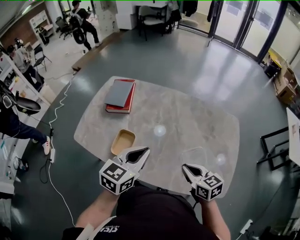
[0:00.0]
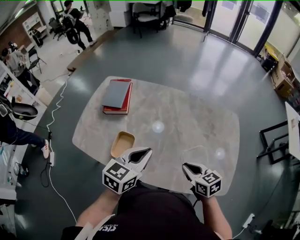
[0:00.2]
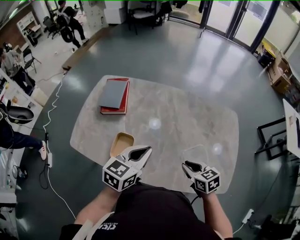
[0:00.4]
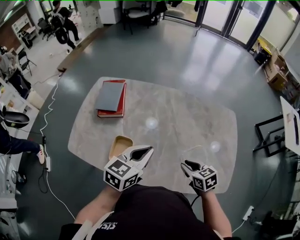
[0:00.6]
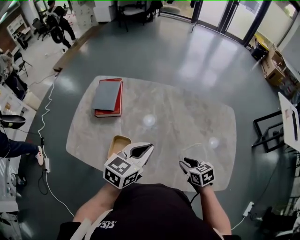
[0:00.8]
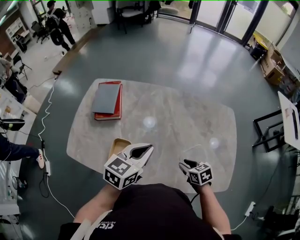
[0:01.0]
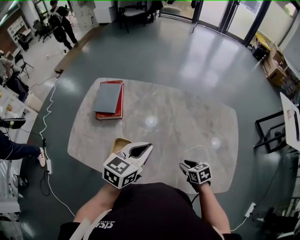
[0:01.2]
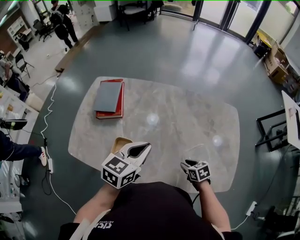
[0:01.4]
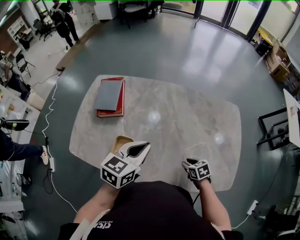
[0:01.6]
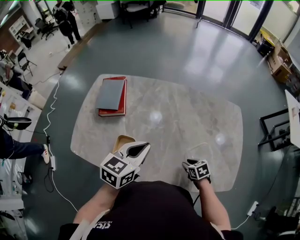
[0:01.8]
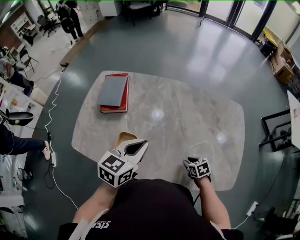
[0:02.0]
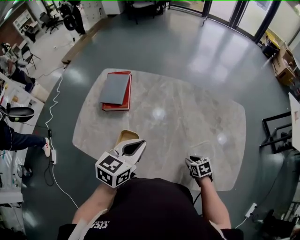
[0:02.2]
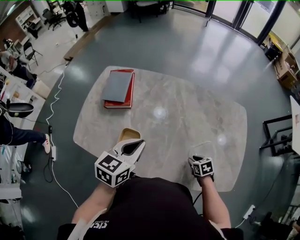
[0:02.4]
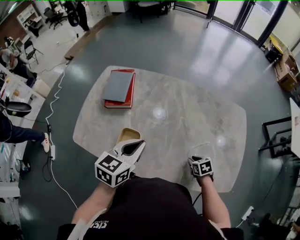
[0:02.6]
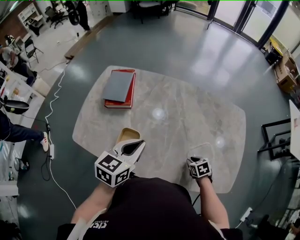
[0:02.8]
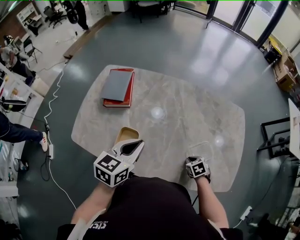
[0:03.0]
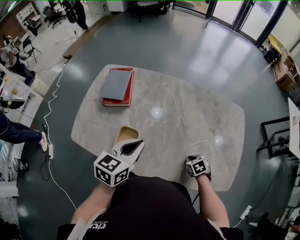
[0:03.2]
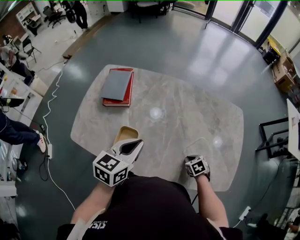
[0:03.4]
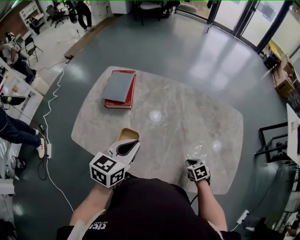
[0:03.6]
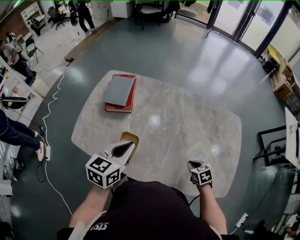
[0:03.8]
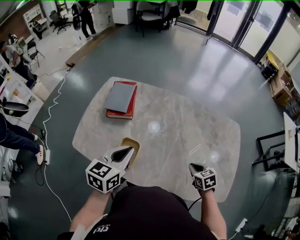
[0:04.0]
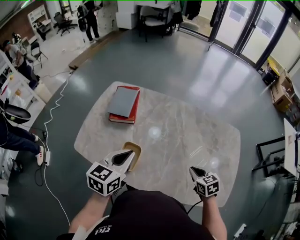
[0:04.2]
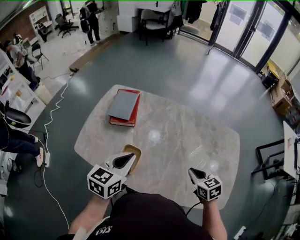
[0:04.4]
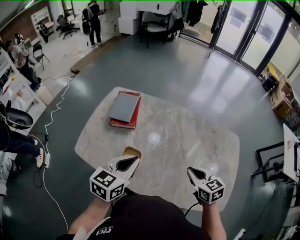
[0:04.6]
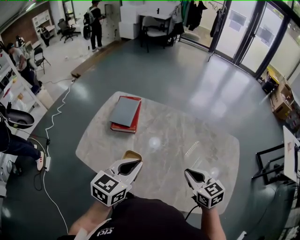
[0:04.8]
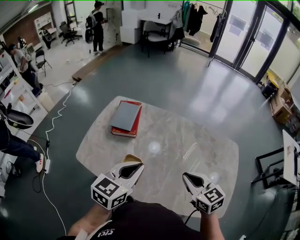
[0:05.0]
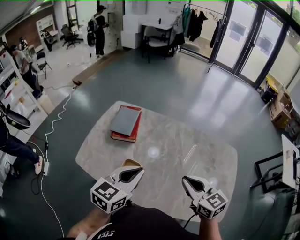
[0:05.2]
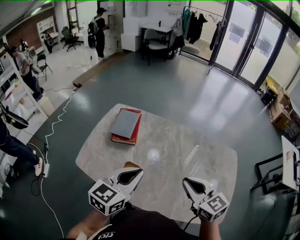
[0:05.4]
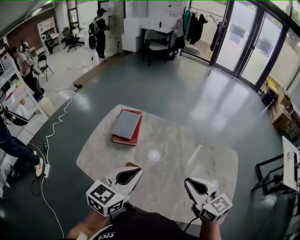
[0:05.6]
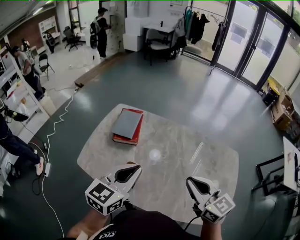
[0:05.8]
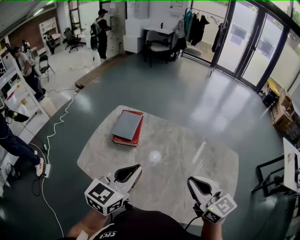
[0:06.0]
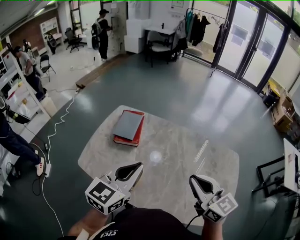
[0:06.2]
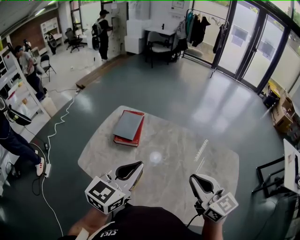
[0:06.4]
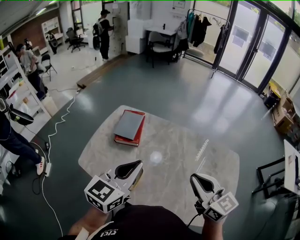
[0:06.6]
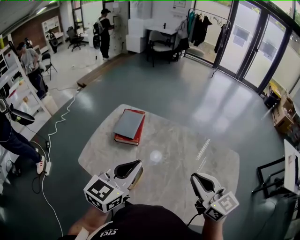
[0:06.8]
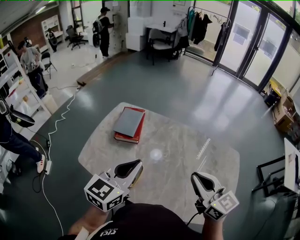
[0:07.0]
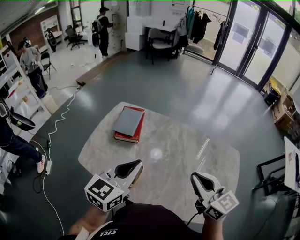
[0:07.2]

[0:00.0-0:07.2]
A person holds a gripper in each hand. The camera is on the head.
0:00.0 to 0:01.4: The left gripper heads forward, covering approximately 10 cm, while the right gripper moves downward, some 20 cm, turns by some 30 degrees, and opens its fingers.
0:01.4 to 0:02.8: The left gripper heads to the left, covering roughly 5 cm.
0:02.8 to 0:04.4: The right gripper goes approximately 20 cm upward, and swivels approximately 20 degrees. The left gripper moves to the left, about 5 cm.
0:04.4 to 0:05.8: The right gripper goes some 20 cm upward, and tips its fingers upward by about 30 degrees. Meanwhile the left gripper shifts some 10 cm upward.
0:05.8 to 0:07.2: There are only small adjustments of the grippers.

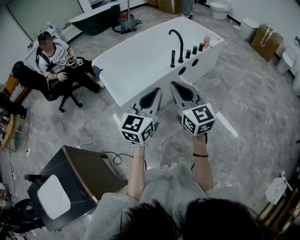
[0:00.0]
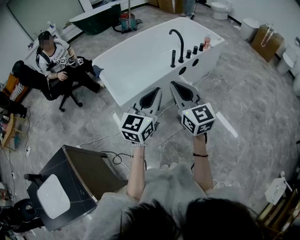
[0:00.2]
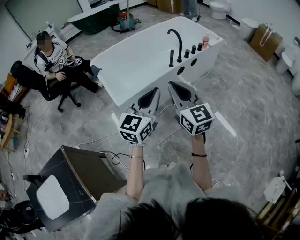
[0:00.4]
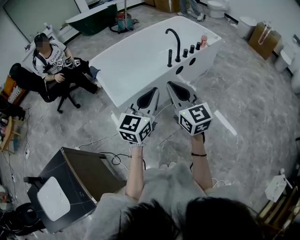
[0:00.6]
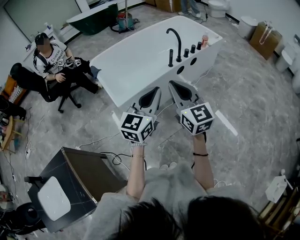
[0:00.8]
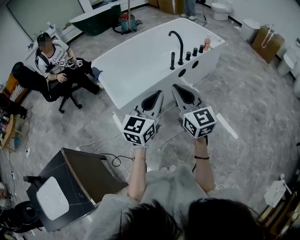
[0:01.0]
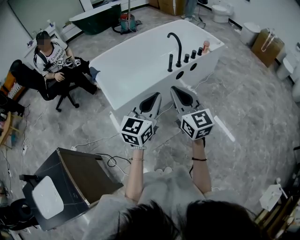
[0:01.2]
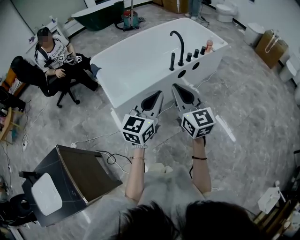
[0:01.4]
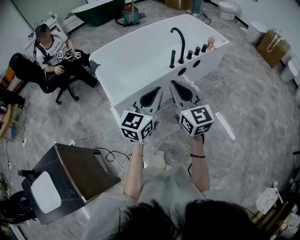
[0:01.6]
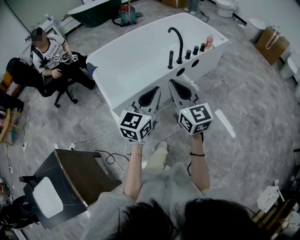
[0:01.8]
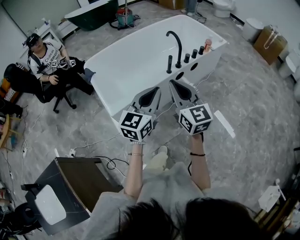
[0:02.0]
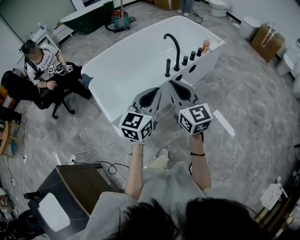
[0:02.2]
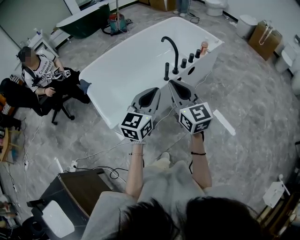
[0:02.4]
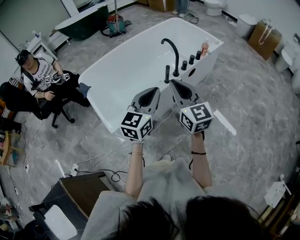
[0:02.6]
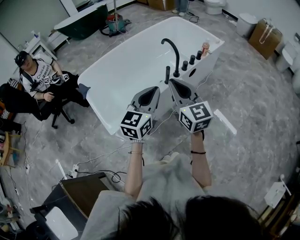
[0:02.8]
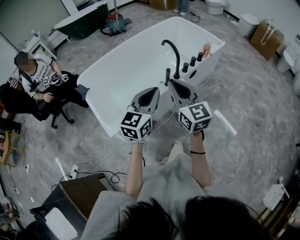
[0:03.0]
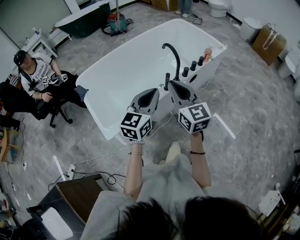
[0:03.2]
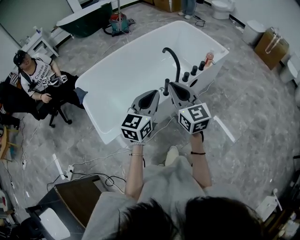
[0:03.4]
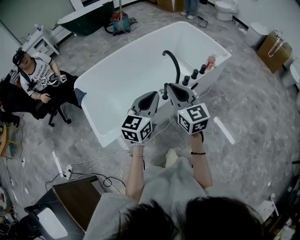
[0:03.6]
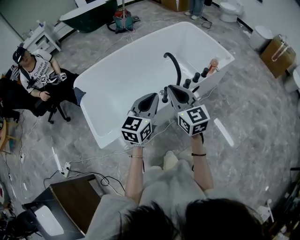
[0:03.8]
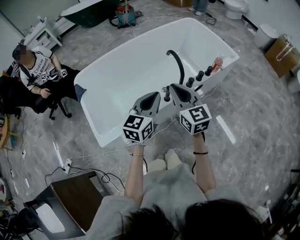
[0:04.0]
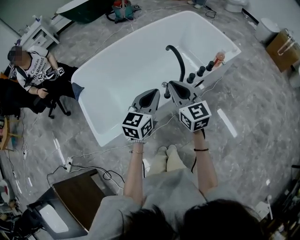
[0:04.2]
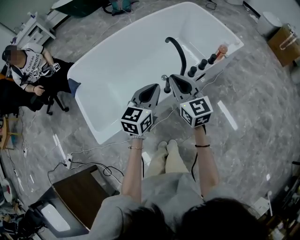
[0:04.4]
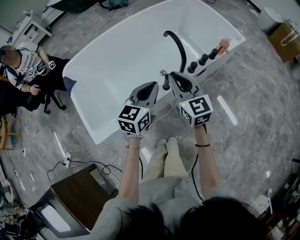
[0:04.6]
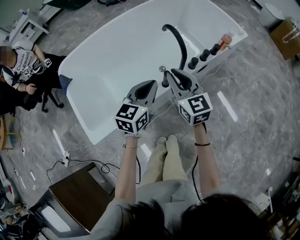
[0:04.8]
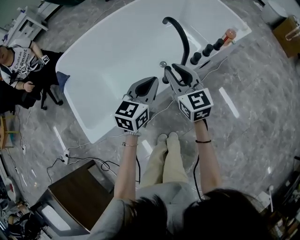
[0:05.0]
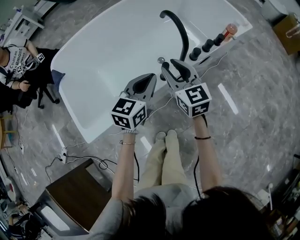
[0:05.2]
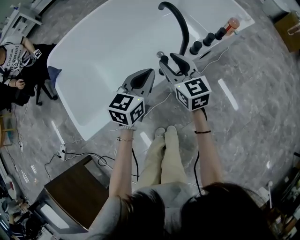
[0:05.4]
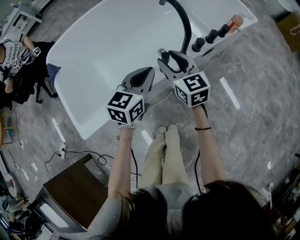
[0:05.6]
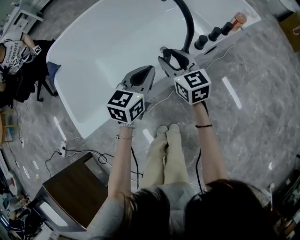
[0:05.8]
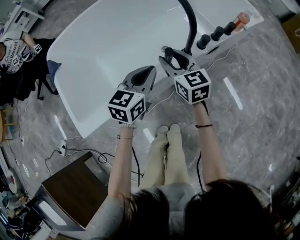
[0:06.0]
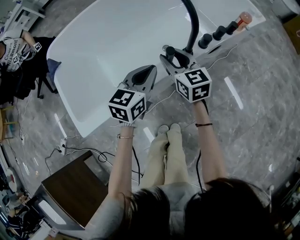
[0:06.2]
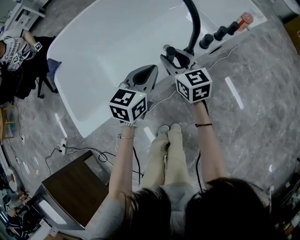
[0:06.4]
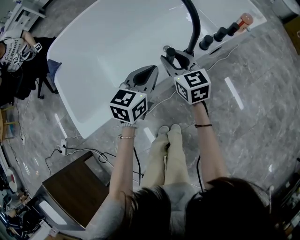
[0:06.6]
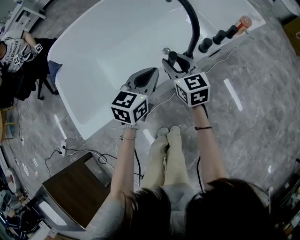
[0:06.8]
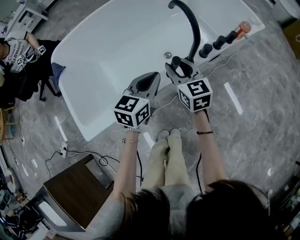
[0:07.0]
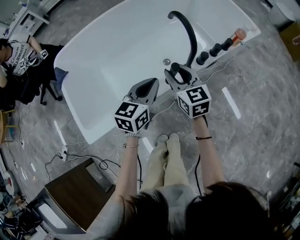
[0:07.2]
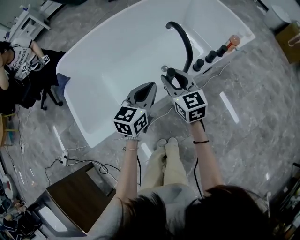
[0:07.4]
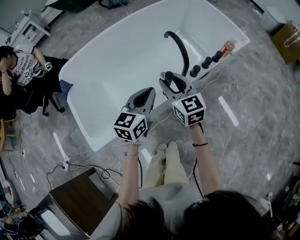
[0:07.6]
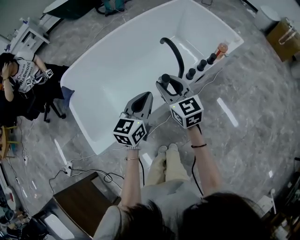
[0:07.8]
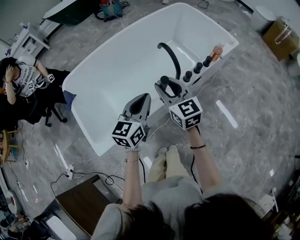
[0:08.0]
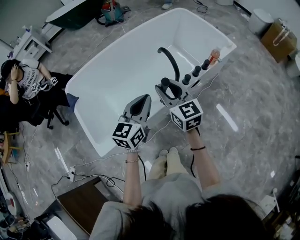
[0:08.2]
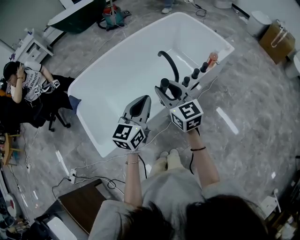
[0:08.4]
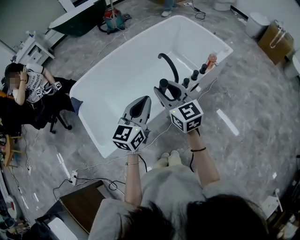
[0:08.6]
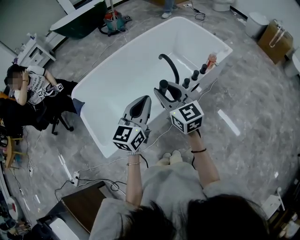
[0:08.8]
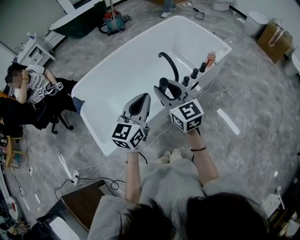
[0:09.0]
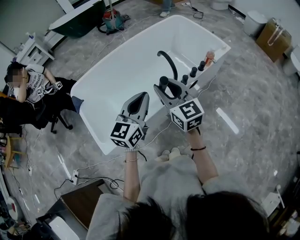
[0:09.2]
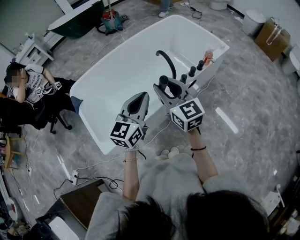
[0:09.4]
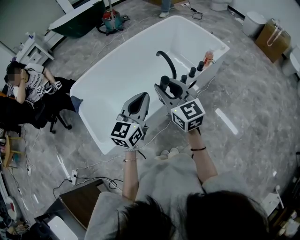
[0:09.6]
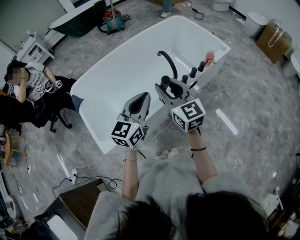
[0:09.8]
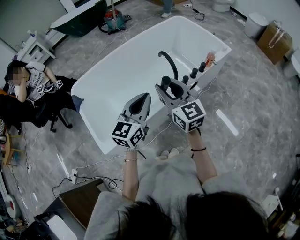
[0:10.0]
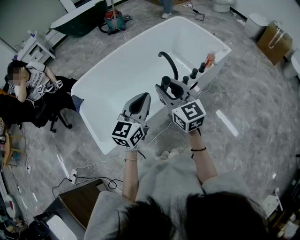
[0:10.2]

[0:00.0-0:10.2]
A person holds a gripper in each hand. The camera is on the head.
0:00.0 to 0:01.4: The right gripper moves approximately 5 cm; the left gripper shifts by some 5 cm.
0:01.4 to 0:03.0: The grippers both shift forward by roughly 25 cm.
0:03.0 to 0:04.4: Both grippers travel together forward and downward, approximately 25 cm.
0:04.4 to 0:05.8: Both grippers travel together downward, about 20 cm. The right gripper opens up.
0:05.8 to 0:07.2: The grippers stay close to where they were, moving slightly.
0:07.2 to 0:08.8: The grippers both shift upward by roughly 25 cm.
0:08.8 to 0:10.2: The grippers move only a little.

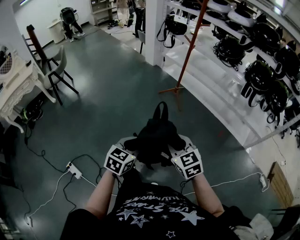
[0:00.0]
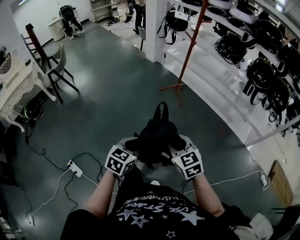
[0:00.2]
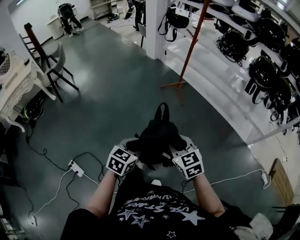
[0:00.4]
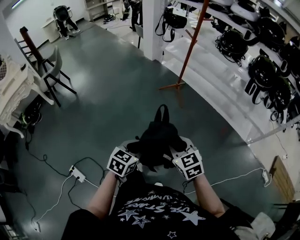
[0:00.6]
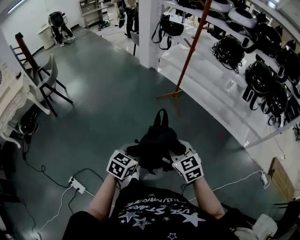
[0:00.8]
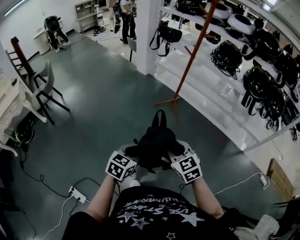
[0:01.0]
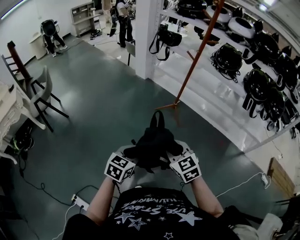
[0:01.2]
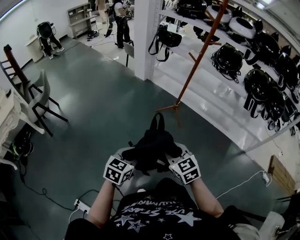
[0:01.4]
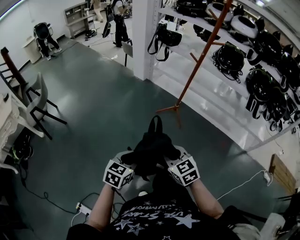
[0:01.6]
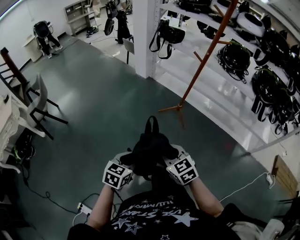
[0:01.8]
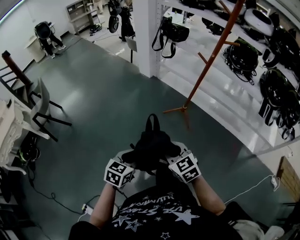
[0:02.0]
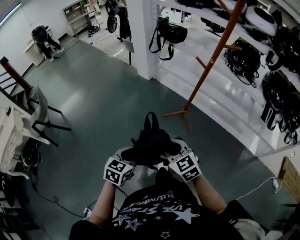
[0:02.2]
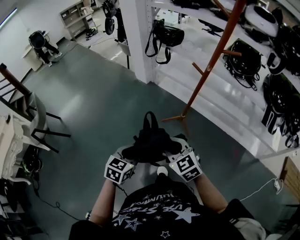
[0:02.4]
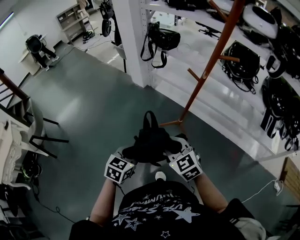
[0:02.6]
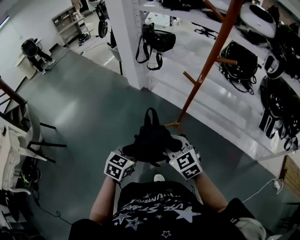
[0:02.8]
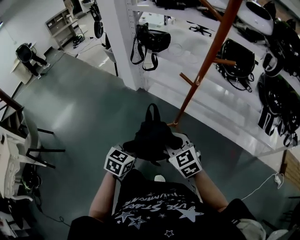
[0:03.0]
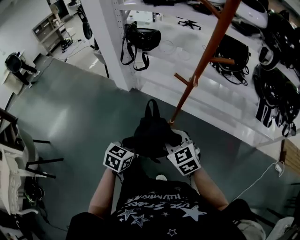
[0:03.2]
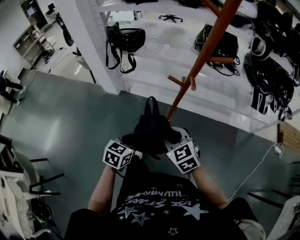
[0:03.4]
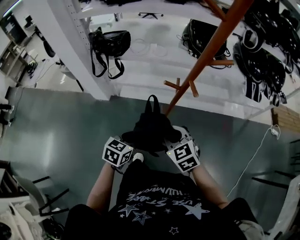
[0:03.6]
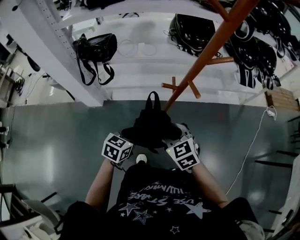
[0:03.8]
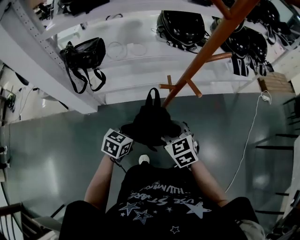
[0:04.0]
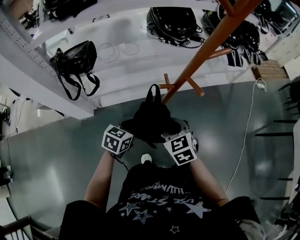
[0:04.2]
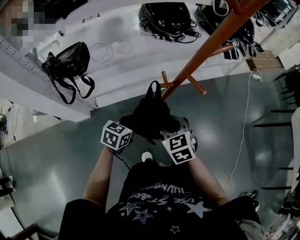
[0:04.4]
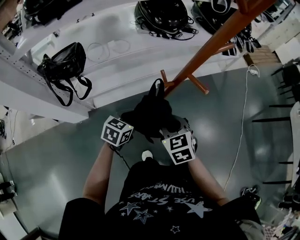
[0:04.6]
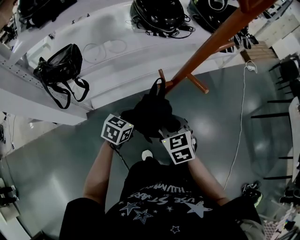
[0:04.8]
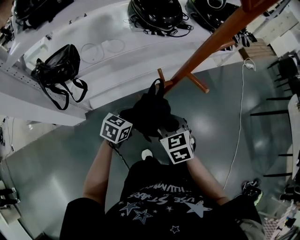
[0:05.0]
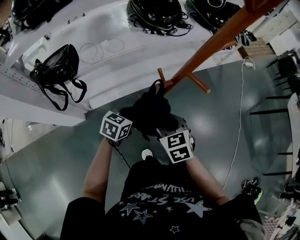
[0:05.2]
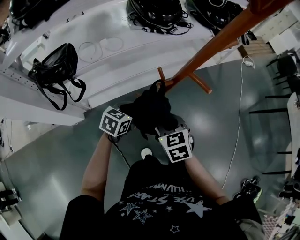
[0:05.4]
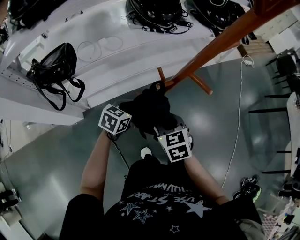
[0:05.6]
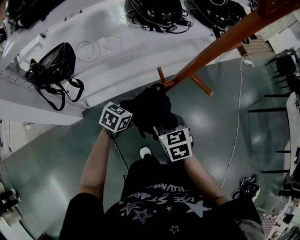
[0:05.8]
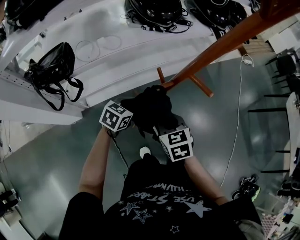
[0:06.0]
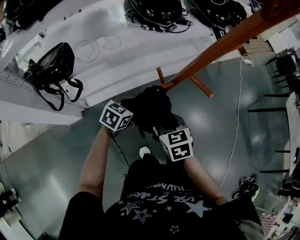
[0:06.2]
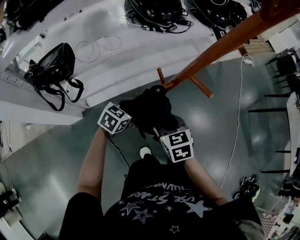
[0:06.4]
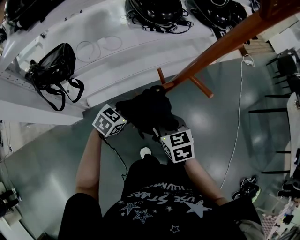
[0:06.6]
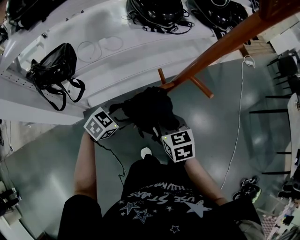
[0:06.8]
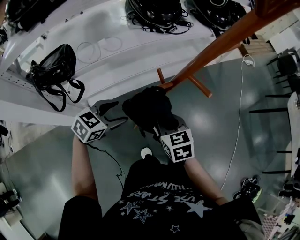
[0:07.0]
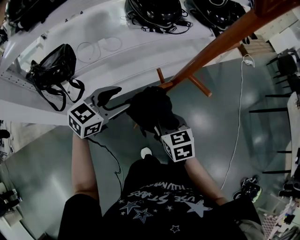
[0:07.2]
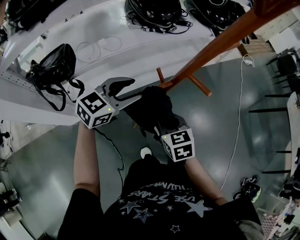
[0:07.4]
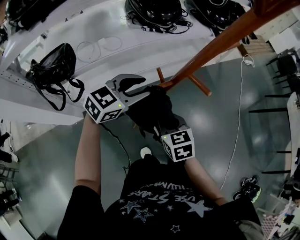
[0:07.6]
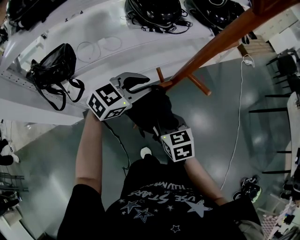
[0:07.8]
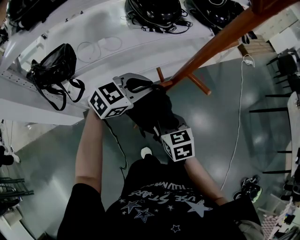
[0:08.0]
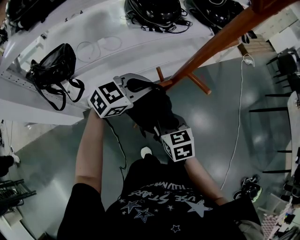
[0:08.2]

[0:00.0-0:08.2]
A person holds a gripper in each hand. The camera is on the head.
0:00.0 to 0:01.6: The grippers both shift forward and to the left by roughly 30 cm.
0:01.6 to 0:03.2: The pair of grippers is taken forward, roughly 50 cm.
0:03.2 to 0:05.0: The left gripper shifts by roughly 30 cm, and changes its angle by roughly 50 degrees, while the right gripper moves about 20 cm, and rotates approximately 60 degrees.
0:05.0 to 0:06.6: The left gripper opens up.
0:06.6 to 0:08.2: The left gripper goes some 15 cm upward and forward, swivels roughly 20 degrees, and closes.
